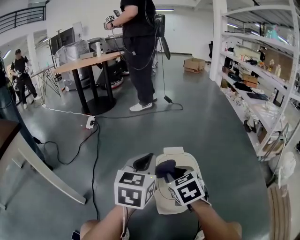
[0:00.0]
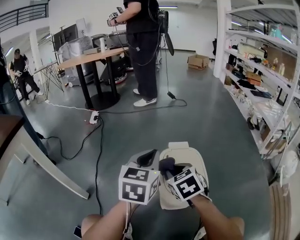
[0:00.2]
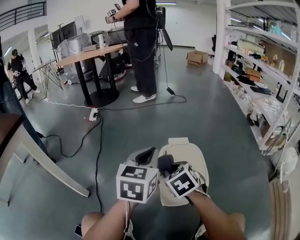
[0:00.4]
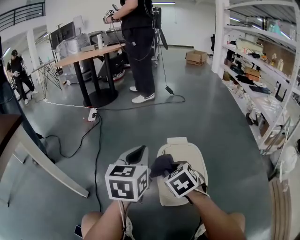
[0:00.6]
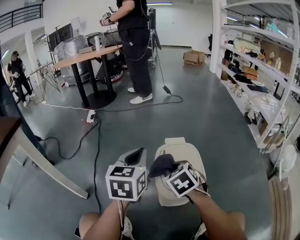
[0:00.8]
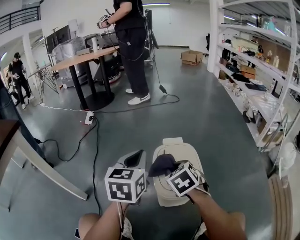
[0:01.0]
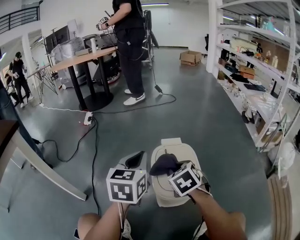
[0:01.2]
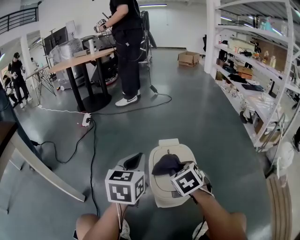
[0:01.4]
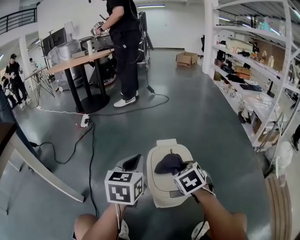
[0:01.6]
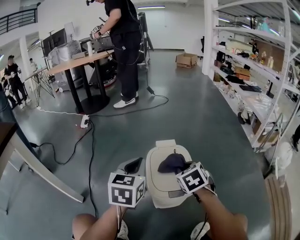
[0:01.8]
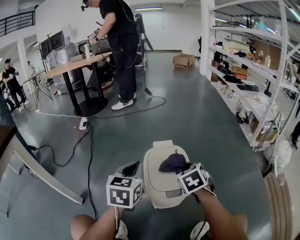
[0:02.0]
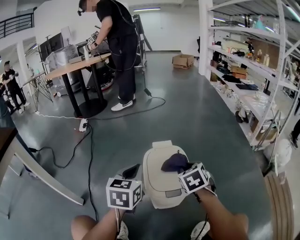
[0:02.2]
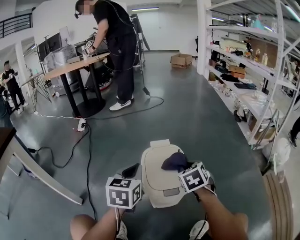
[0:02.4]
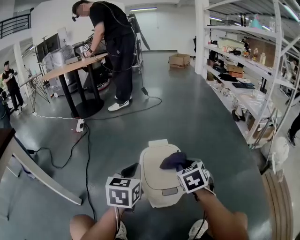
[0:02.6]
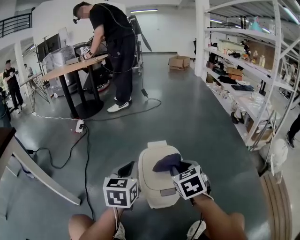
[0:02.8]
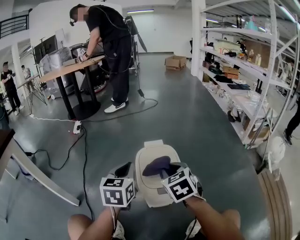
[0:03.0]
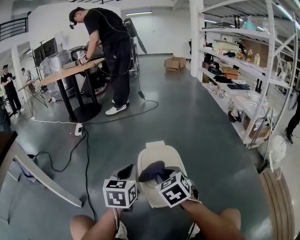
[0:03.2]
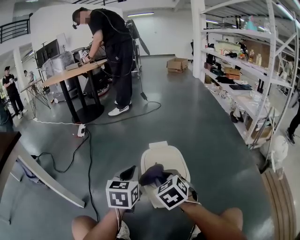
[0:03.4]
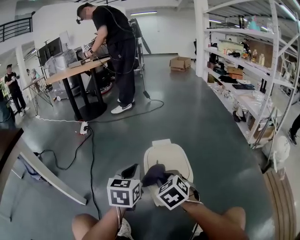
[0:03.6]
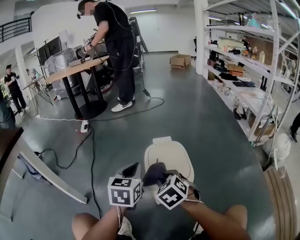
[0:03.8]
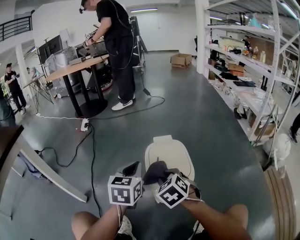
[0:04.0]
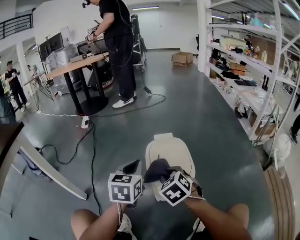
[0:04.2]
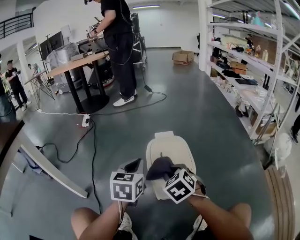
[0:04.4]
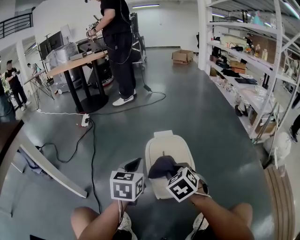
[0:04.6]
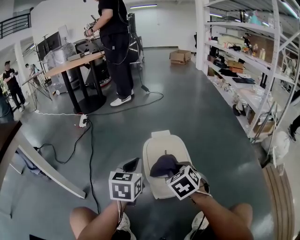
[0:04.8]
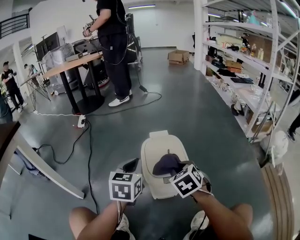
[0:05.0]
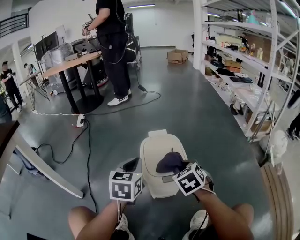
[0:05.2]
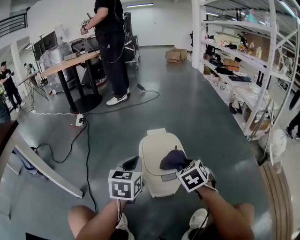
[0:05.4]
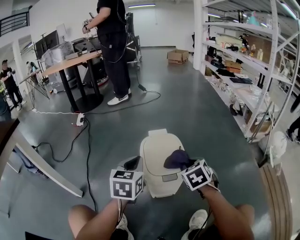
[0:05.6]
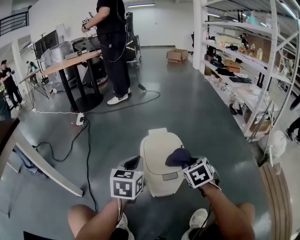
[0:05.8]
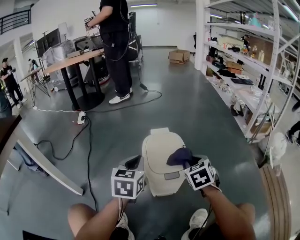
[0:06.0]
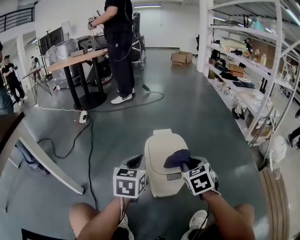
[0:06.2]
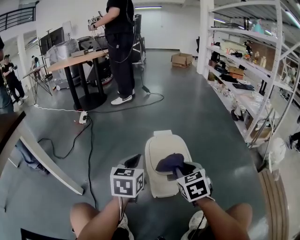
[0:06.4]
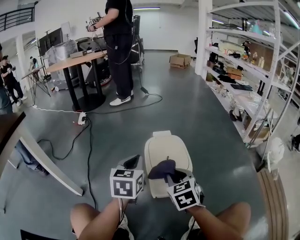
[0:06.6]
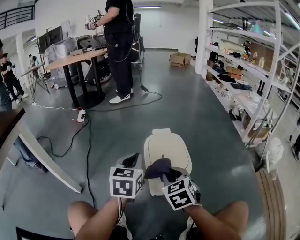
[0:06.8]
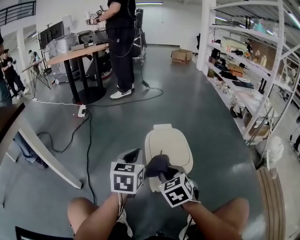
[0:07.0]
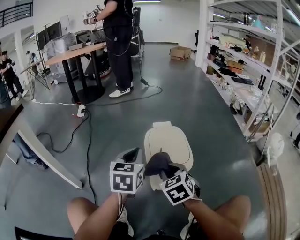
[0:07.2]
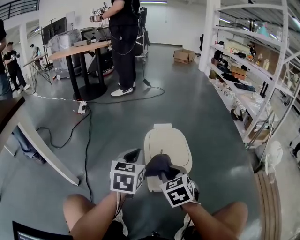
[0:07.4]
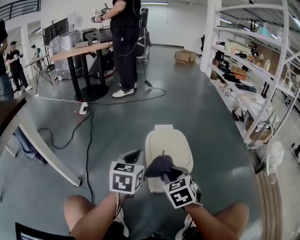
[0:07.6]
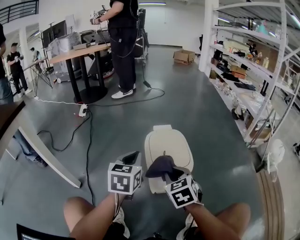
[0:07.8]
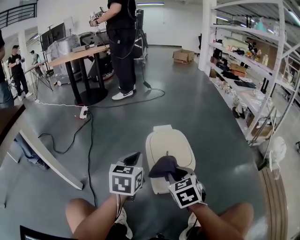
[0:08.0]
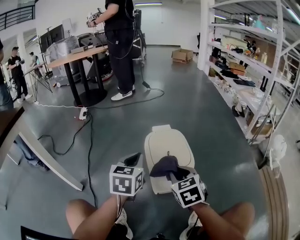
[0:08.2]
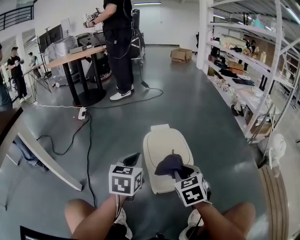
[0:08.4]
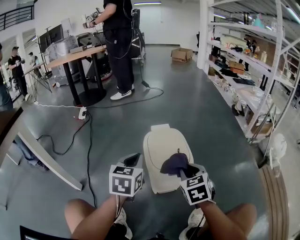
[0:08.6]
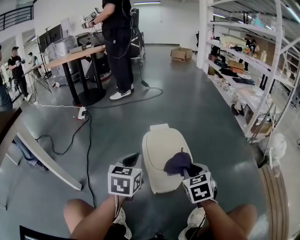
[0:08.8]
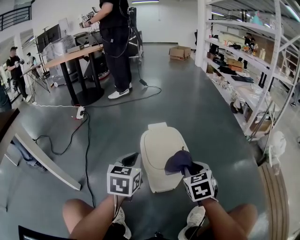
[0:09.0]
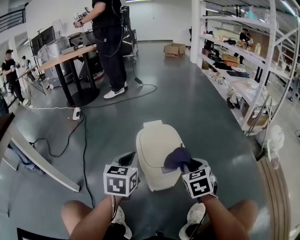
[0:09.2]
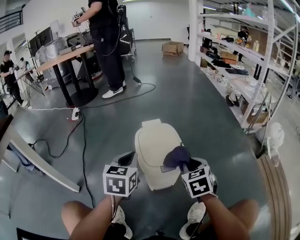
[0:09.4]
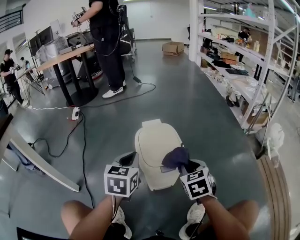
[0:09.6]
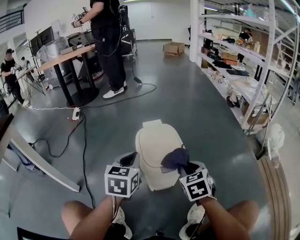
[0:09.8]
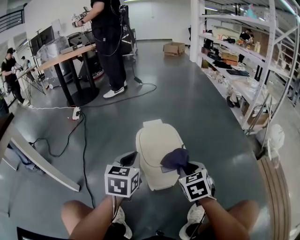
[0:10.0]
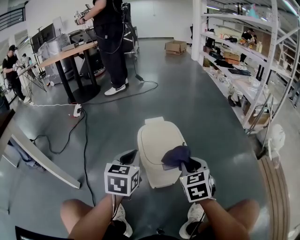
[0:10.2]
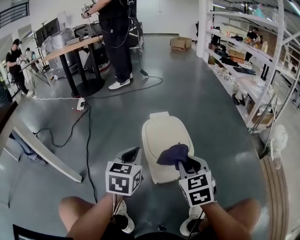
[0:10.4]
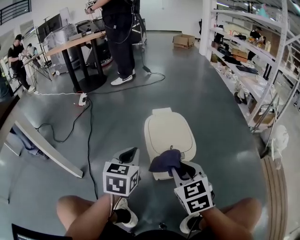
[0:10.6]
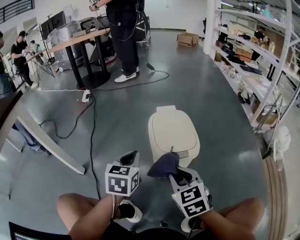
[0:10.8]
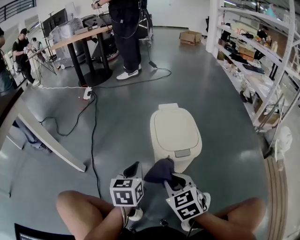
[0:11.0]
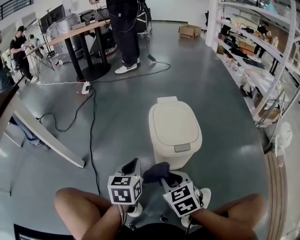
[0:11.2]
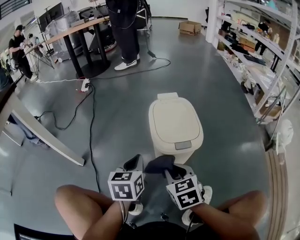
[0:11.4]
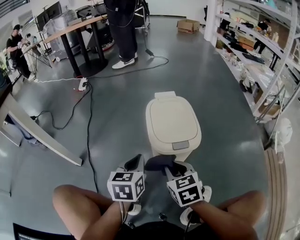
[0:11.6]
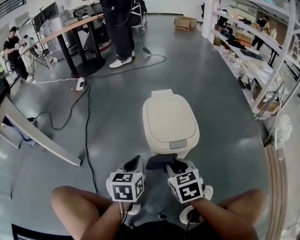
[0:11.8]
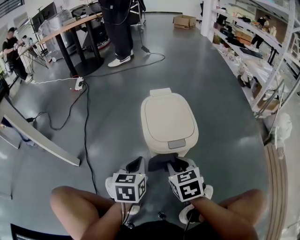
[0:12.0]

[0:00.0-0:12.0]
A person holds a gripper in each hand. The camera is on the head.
0:00.0 to 0:01.6: The right gripper goes about 5 cm to the right.
0:01.6 to 0:03.0: The right gripper shifts by some 5 cm.
0:03.0 to 0:04.4: The right gripper shifts by approximately 5 cm.
0:04.4 to 0:06.0: The right gripper shifts approximately 10 cm to the right.
0:06.0 to 0:07.6: The right gripper moves to the left and backward, roughly 15 cm.
0:07.6 to 0:09.0: The right gripper shifts some 10 cm to the right.
0:09.0 to 0:10.4: The right gripper ends up approximately 5 cm from where it was.
0:10.4 to 0:12.0: The left gripper shifts some 15 cm downward and backward; the right gripper moves downward, approximately 10 cm.

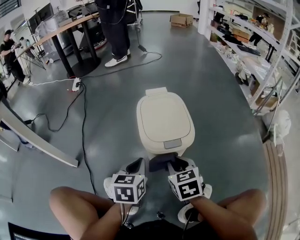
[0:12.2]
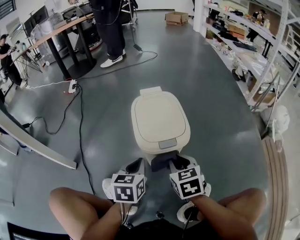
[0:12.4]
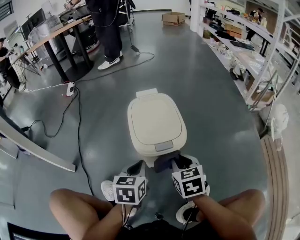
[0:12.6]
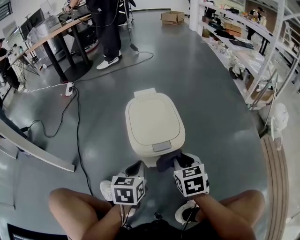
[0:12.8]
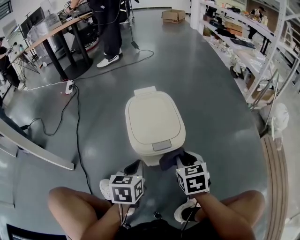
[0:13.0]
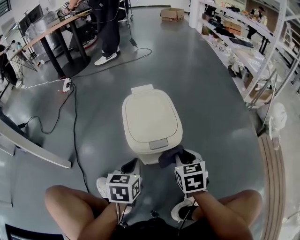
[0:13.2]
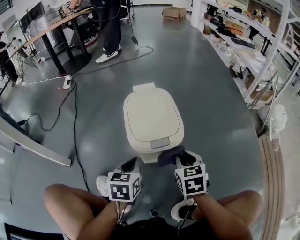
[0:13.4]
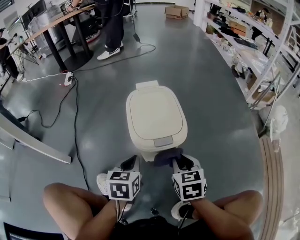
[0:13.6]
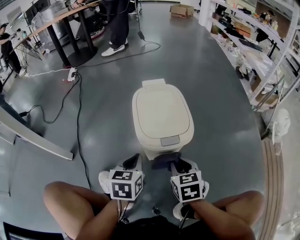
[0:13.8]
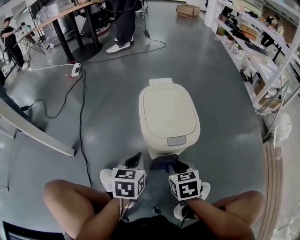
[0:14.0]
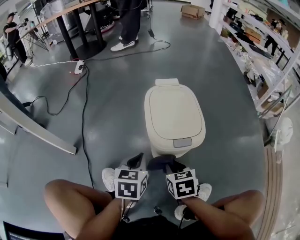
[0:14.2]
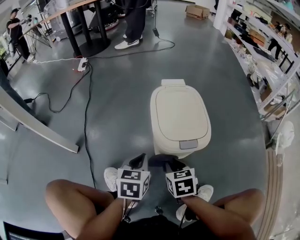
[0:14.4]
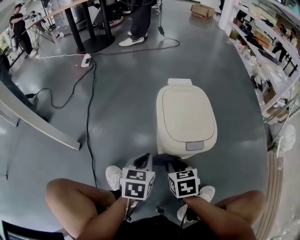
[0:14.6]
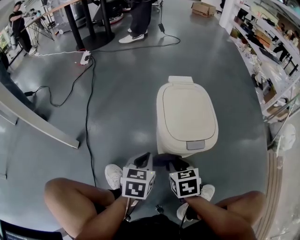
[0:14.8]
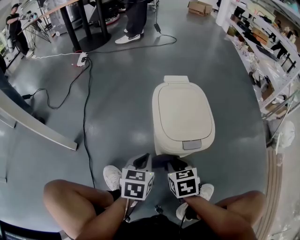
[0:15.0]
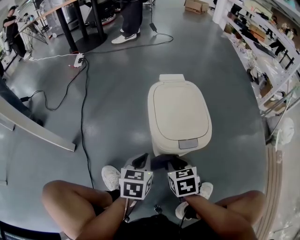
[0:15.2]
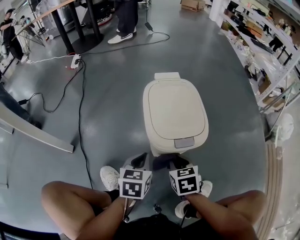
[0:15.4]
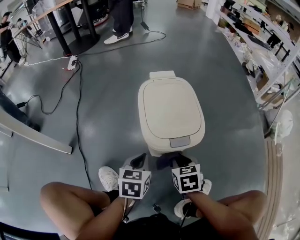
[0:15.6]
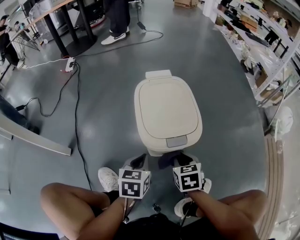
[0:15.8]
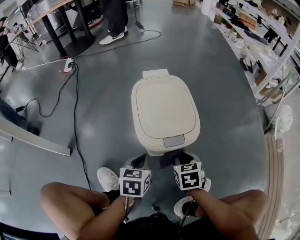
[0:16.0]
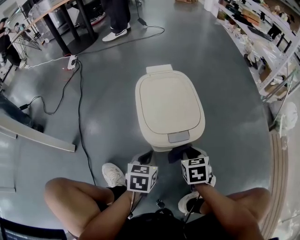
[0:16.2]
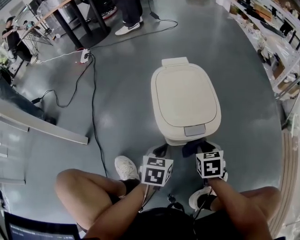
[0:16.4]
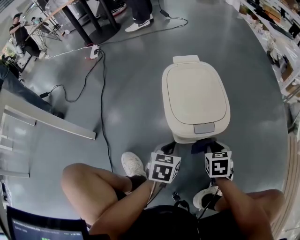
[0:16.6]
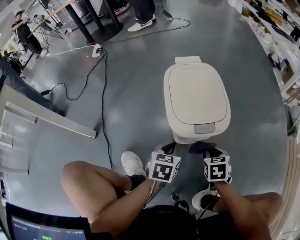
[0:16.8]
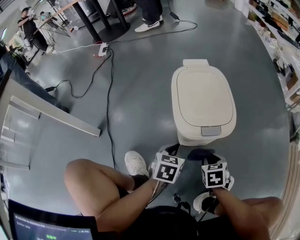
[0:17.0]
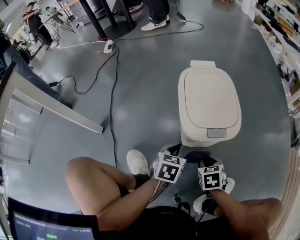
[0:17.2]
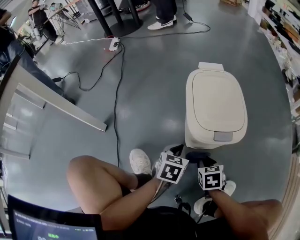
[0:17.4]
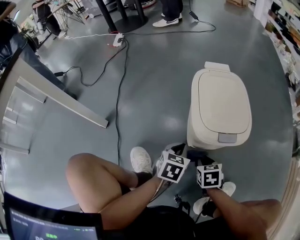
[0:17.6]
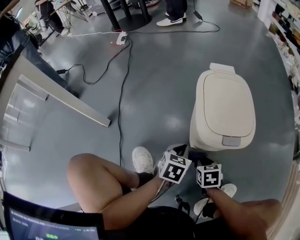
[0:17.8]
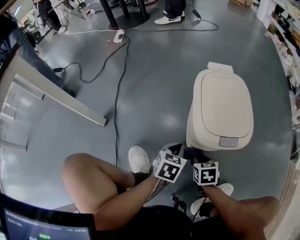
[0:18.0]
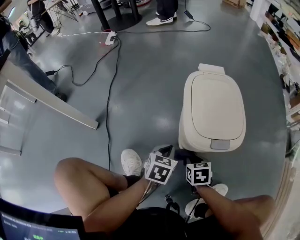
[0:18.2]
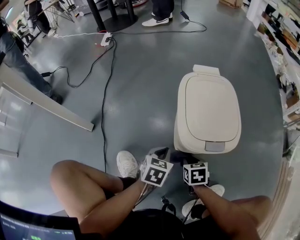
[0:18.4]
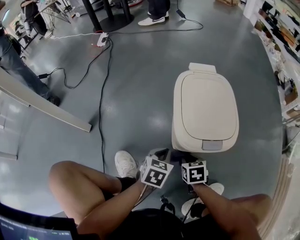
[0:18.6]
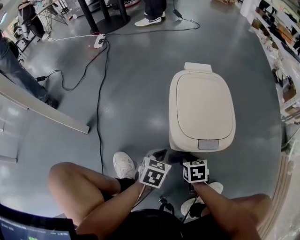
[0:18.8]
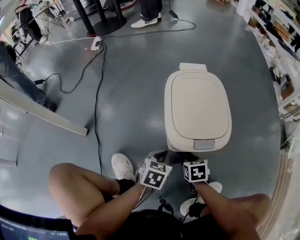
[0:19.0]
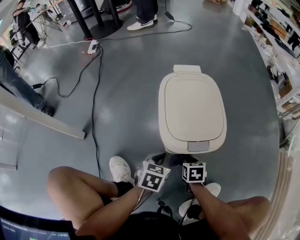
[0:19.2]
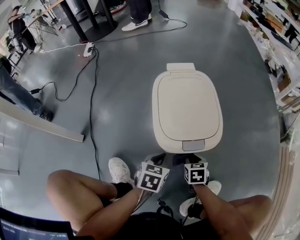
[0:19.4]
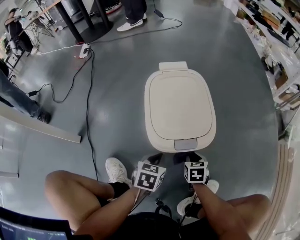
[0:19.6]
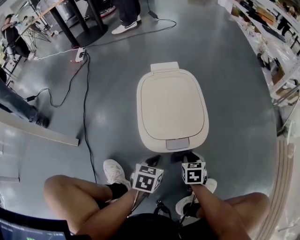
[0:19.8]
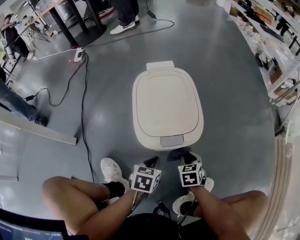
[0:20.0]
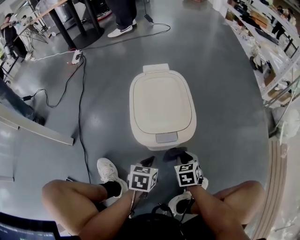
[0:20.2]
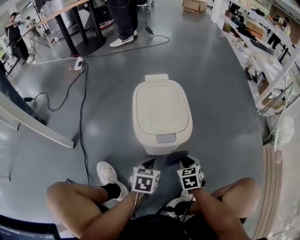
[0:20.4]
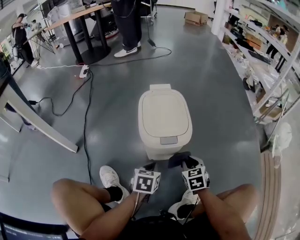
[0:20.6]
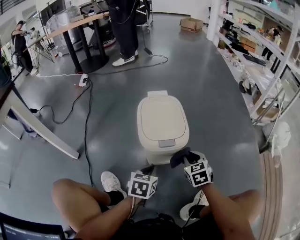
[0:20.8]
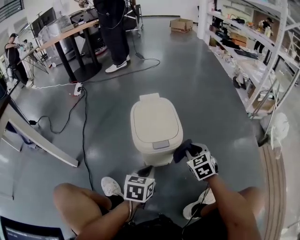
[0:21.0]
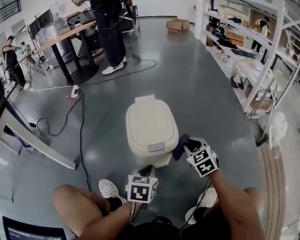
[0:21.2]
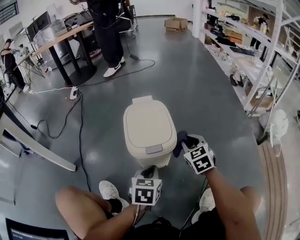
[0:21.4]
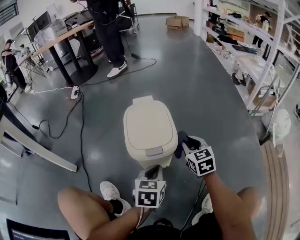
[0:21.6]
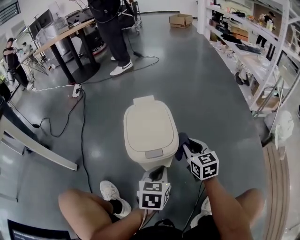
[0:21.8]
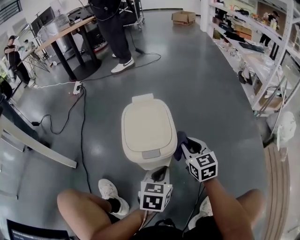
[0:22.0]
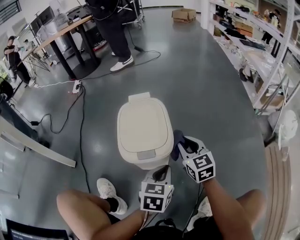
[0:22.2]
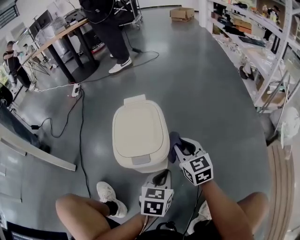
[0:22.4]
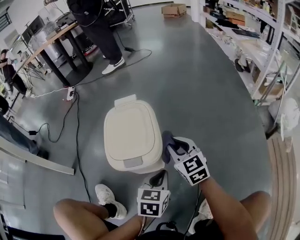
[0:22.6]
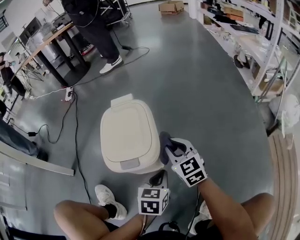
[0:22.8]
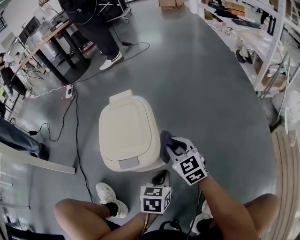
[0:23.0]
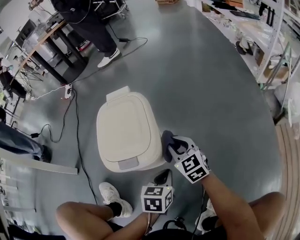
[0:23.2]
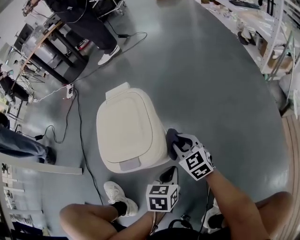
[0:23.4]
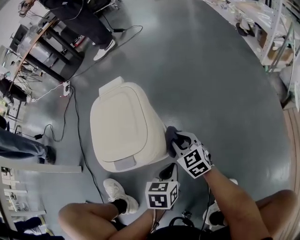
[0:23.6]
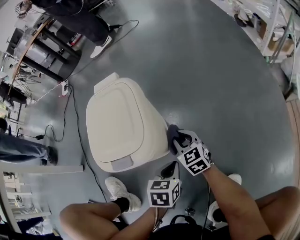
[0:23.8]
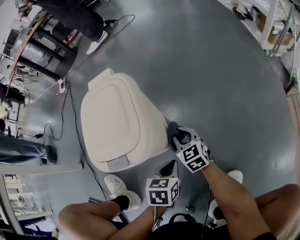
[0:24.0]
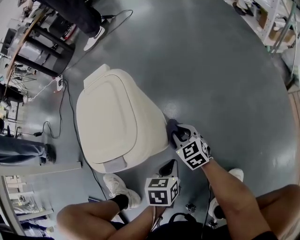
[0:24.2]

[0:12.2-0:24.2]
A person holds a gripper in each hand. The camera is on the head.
0:13.8 to 0:15.2: The right gripper goes some 10 cm to the left and downward; the left gripper changes place by some 5 cm.
0:15.2 to 0:16.6: The right gripper goes approximately 10 cm to the right. The left gripper is displaced to the right by about 5 cm.
0:16.6 to 0:18.2: The left gripper heads to the left, covering some 5 cm, while the right gripper is displaced to the left and downward by some 15 cm.
0:18.2 to 0:19.8: The grippers both shift to the right by some 10 cm.
0:19.8 to 0:21.2: The right gripper heads upward, covering approximately 25 cm, and rotates some 30 degrees. The left gripper moves upward, roughly 15 cm.
0:21.2 to 0:22.6: The right gripper shifts about 5 cm forward, and swivels approximately 20 degrees, while the left gripper travels to the right by approximately 10 cm.
0:22.6 to 0:24.2: Both grippers move downward, approximately 20 cm.
